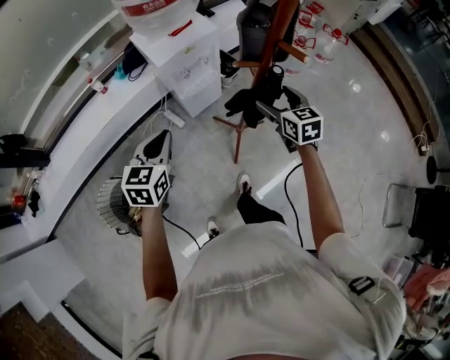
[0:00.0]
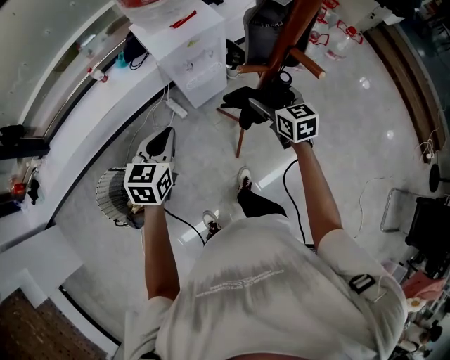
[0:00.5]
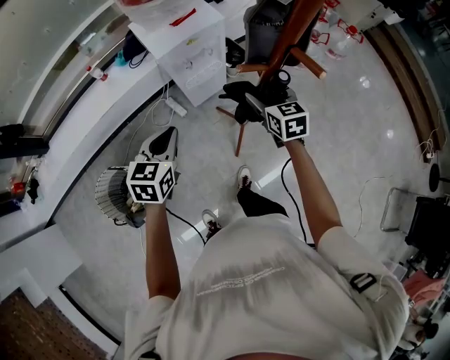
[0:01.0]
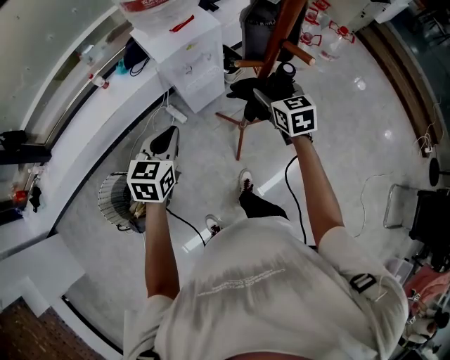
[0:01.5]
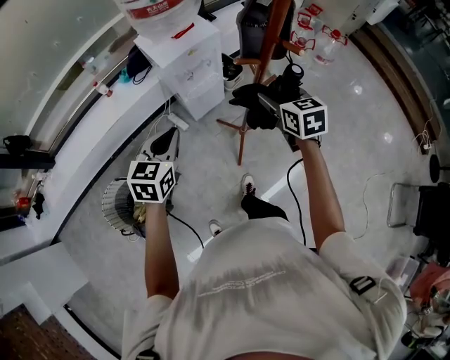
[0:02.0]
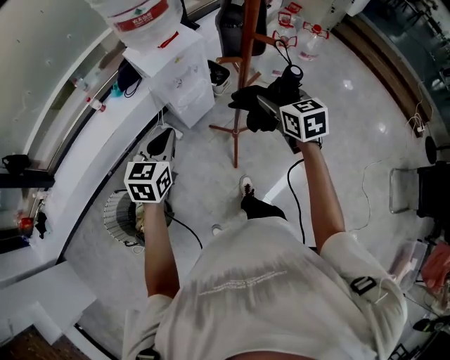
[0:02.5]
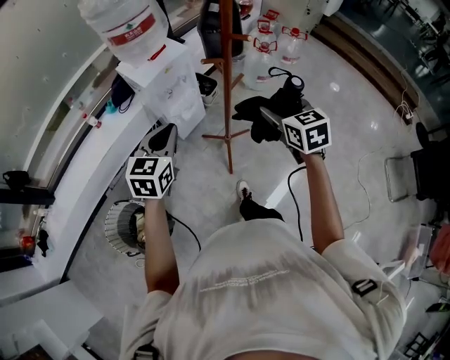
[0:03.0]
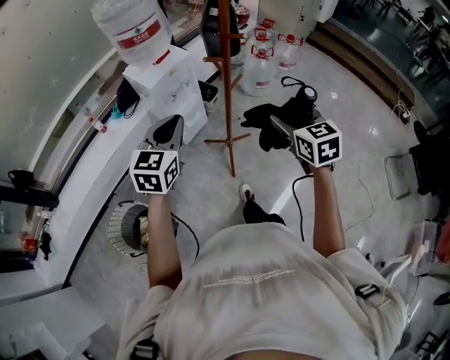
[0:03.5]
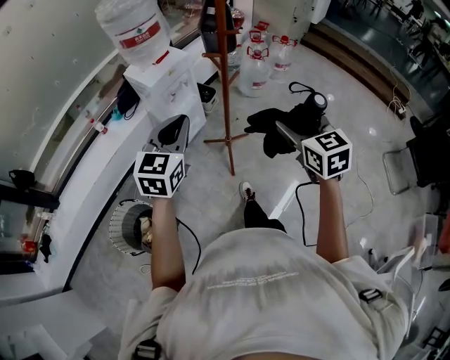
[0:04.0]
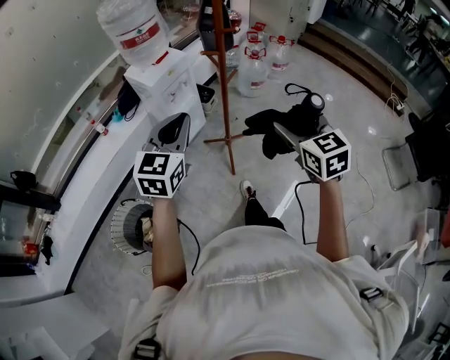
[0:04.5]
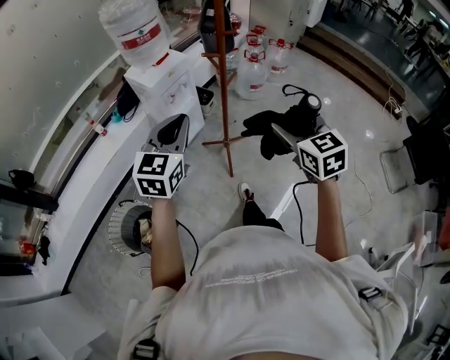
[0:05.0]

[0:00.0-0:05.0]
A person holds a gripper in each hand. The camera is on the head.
0:00.0 to 0:02.5: The right gripper moves upward and backward, roughly 10 cm.
0:02.5 to 0:05.0: The right gripper shifts some 30 cm backward and upward. Meanwhile the left gripper heads backward, upward and to the right, covering some 20 cm, and swivels approximately 20 degrees.

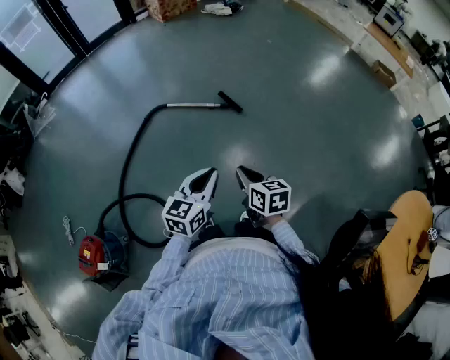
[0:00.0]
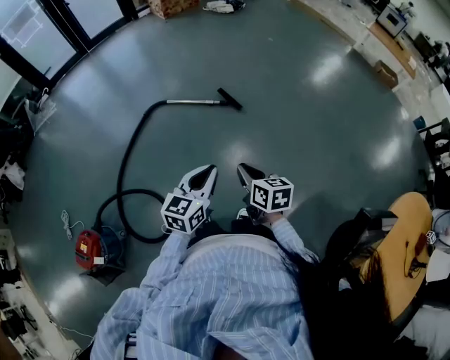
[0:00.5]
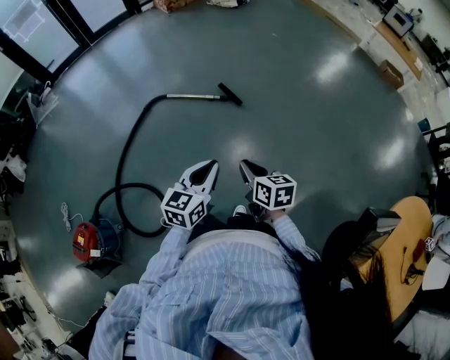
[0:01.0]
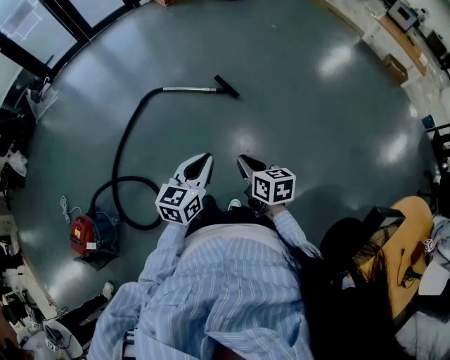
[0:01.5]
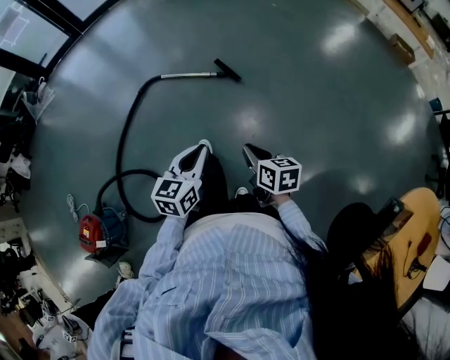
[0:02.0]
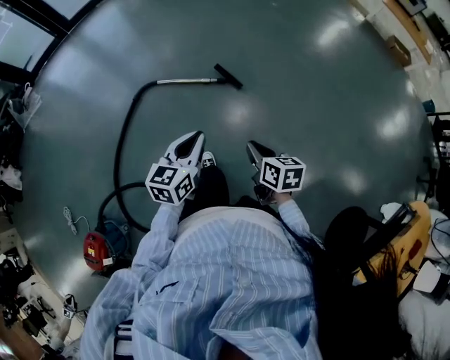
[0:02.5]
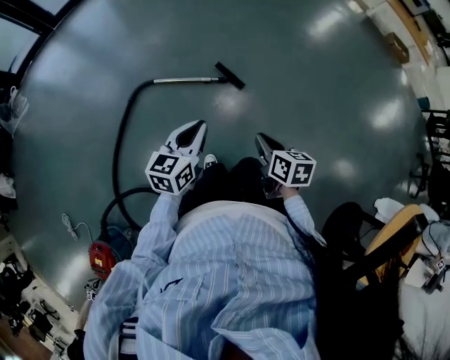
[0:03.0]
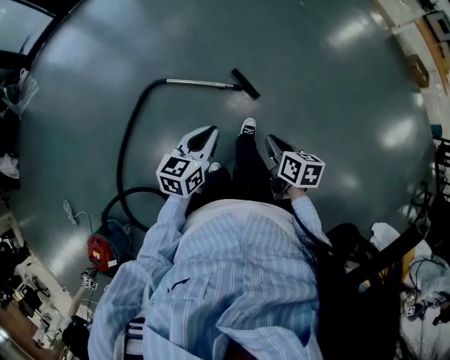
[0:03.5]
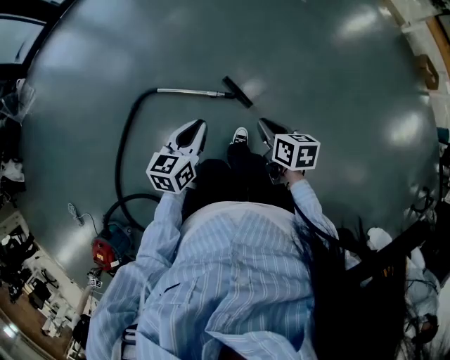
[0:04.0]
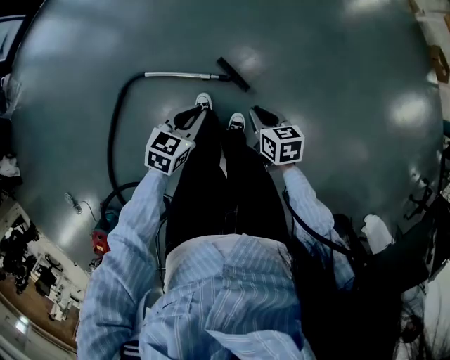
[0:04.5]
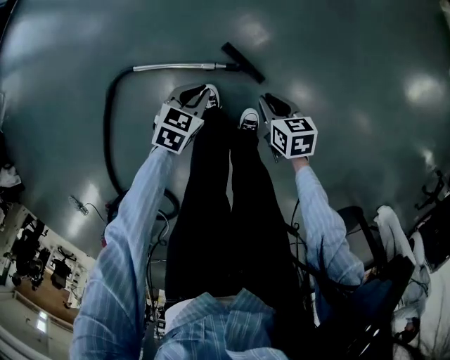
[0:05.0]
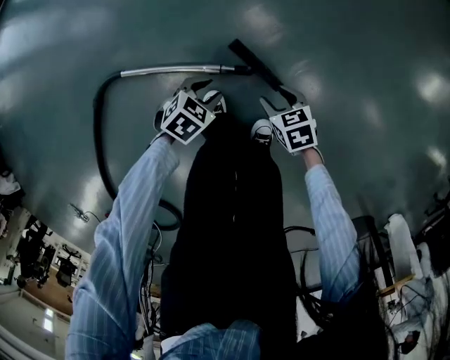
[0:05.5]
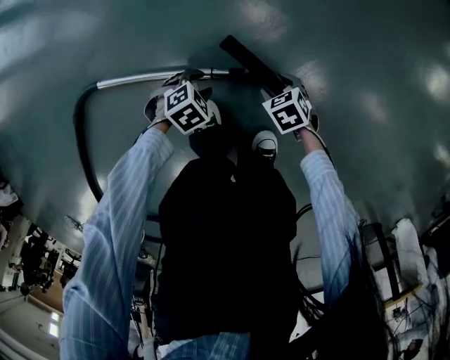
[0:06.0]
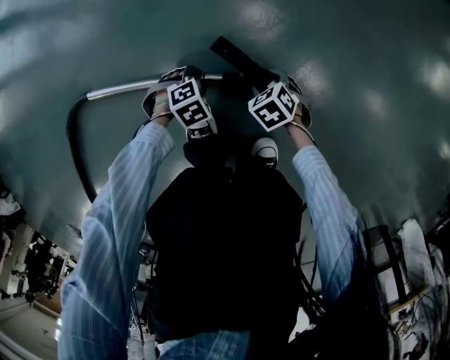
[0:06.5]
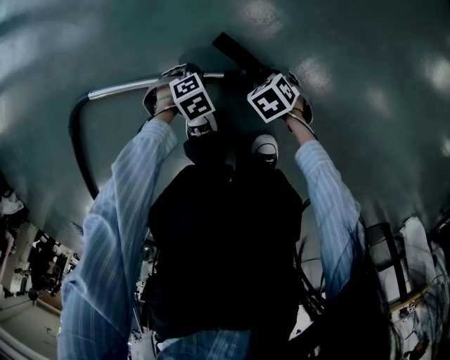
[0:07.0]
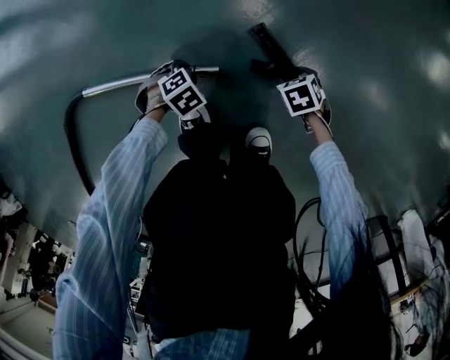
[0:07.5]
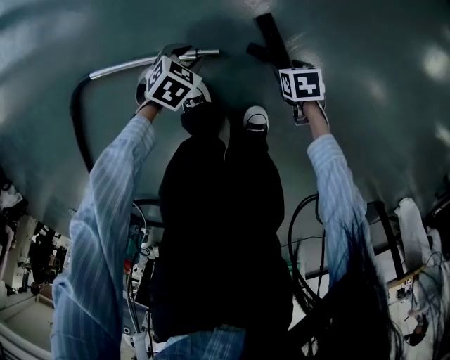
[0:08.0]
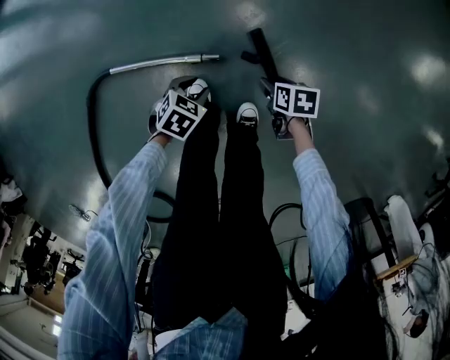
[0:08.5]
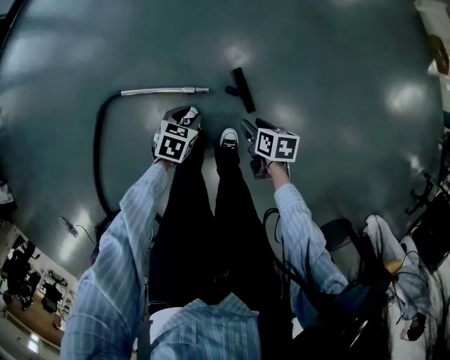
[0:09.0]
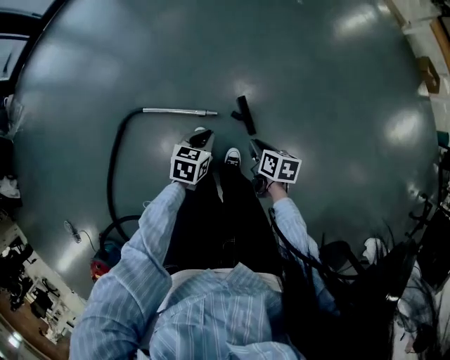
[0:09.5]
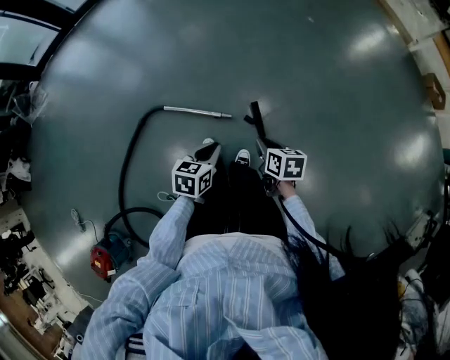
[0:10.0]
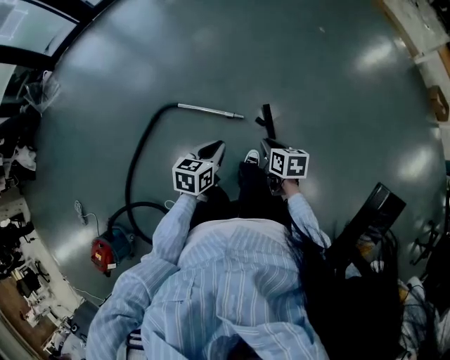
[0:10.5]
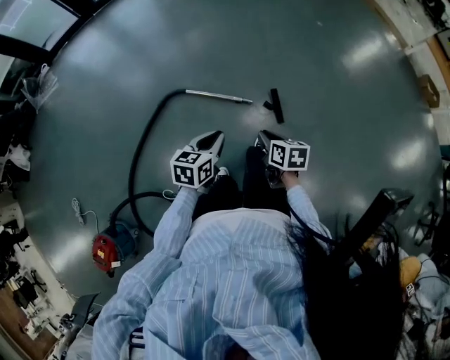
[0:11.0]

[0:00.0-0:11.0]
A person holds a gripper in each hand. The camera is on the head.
0:00.0 to 0:02.0: The left gripper goes roughly 10 cm to the right and forward; the right gripper shifts some 15 cm to the right and downward.
0:02.0 to 0:03.5: The two grippers go approximately 40 cm forward.
0:03.5 to 0:05.5: The two grippers go approximately 60 cm downward. The left gripper tips its fingers downward by approximately 40 degrees, and opens its fingers; the right gripper swivels some 30 degrees, and opens its fingers.
0:05.5 to 0:07.5: Both grippers move downward, some 25 cm. The right gripper rotates about 20 degrees; the left gripper turns by some 30 degrees.
0:07.5 to 0:09.0: Both grippers move upward, roughly 40 cm. The right gripper turns by approximately 40 degrees, while the left gripper changes its angle by roughly 50 degrees.
0:09.0 to 0:11.0: The right gripper travels upward, backward and to the left by about 40 cm, changes its angle by some 20 degrees, and closes, while the left gripper goes some 50 cm upward and backward, swivels some 40 degrees, and closes up.

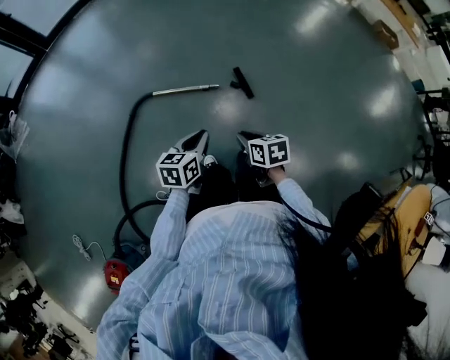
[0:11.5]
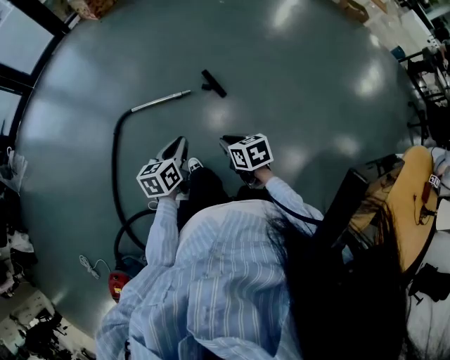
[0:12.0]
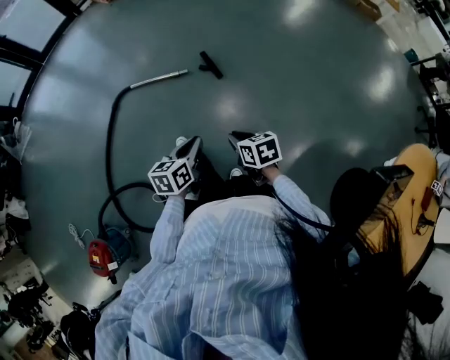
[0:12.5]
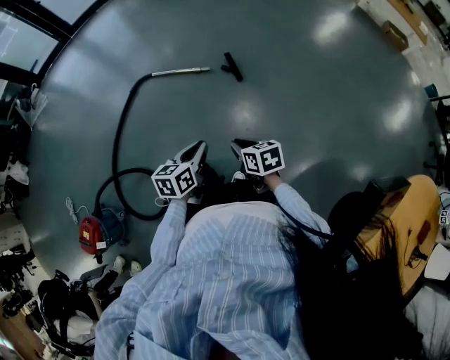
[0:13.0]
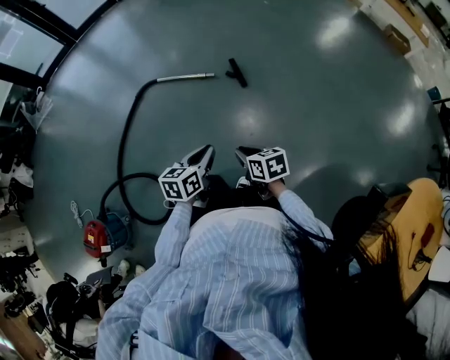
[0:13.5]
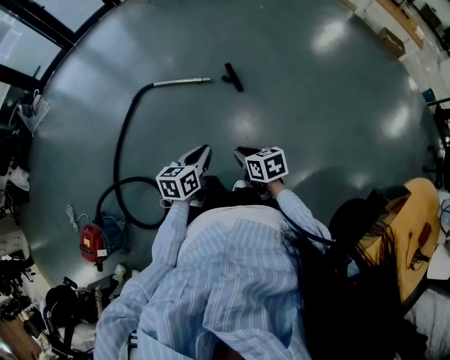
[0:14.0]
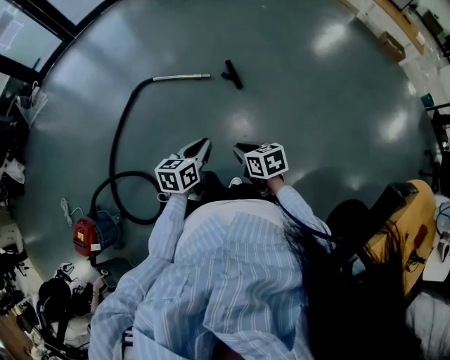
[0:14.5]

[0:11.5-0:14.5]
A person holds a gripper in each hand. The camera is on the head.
0:11.5 to 0:13.0: The two grippers go approximately 35 cm backward and to the right.
0:13.0 to 0:14.5: The grippers make only small movements.

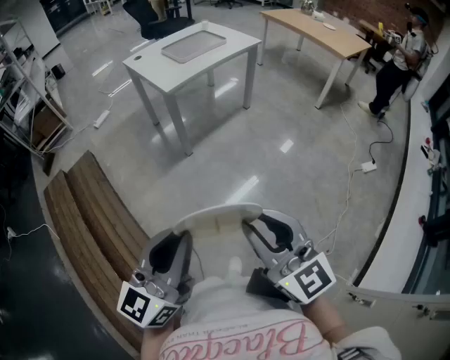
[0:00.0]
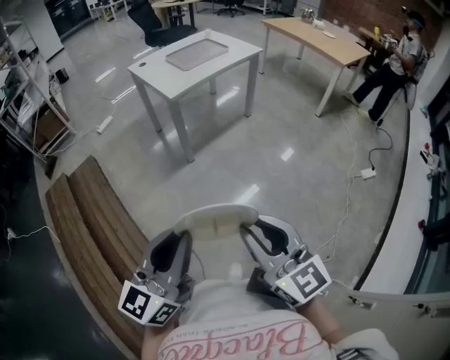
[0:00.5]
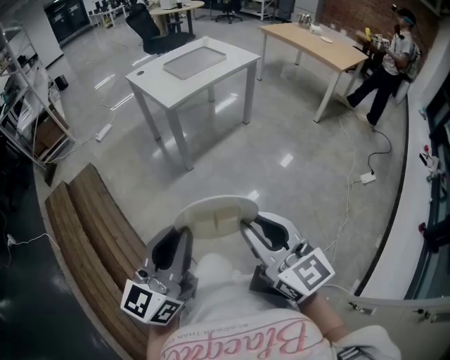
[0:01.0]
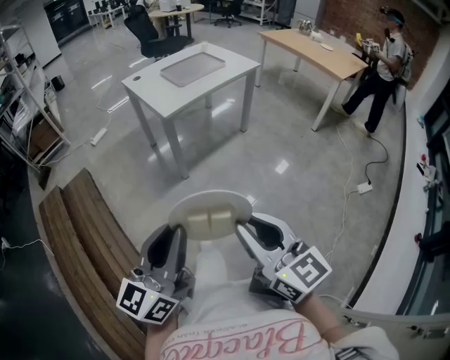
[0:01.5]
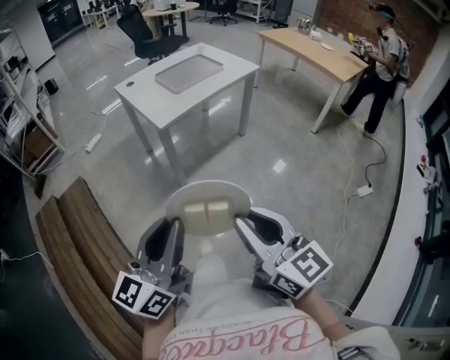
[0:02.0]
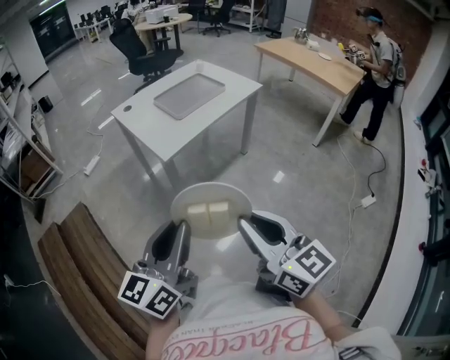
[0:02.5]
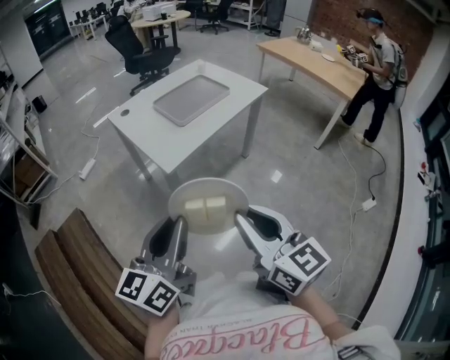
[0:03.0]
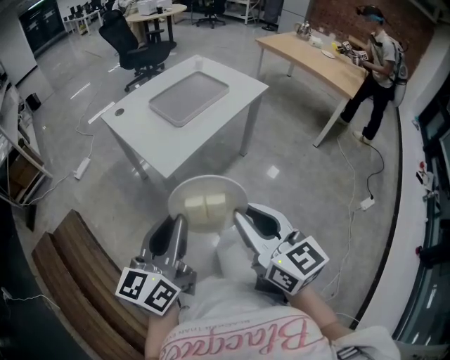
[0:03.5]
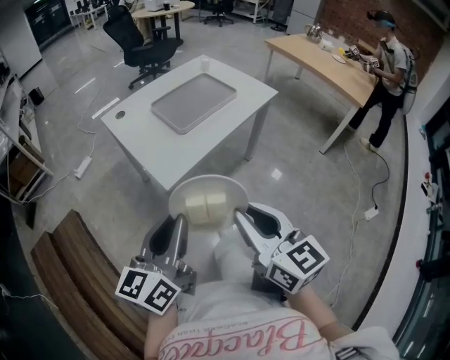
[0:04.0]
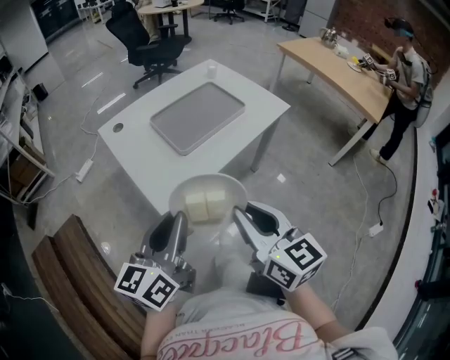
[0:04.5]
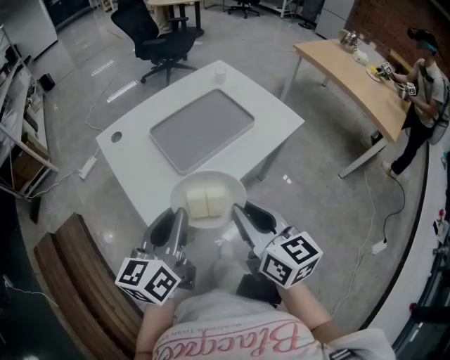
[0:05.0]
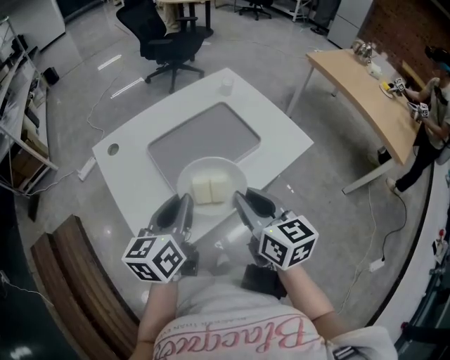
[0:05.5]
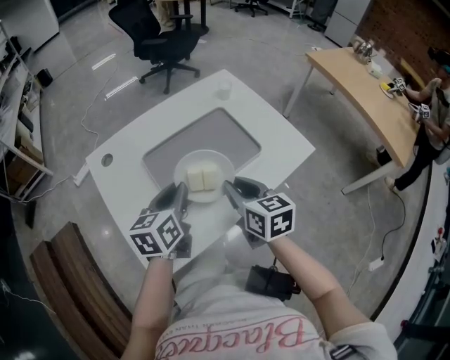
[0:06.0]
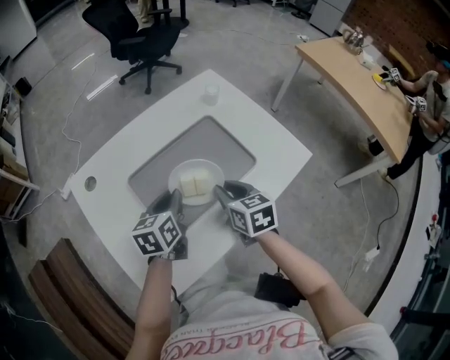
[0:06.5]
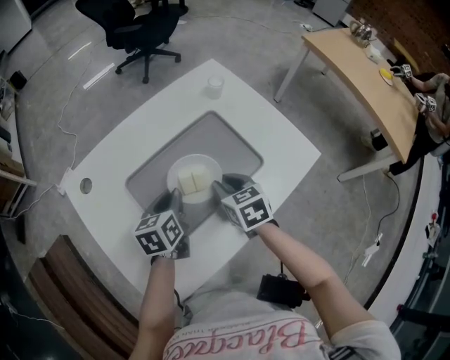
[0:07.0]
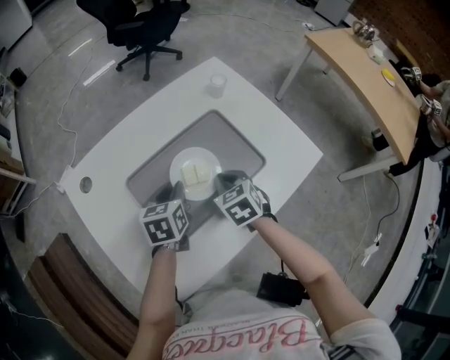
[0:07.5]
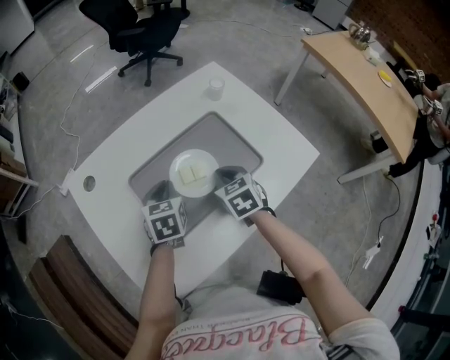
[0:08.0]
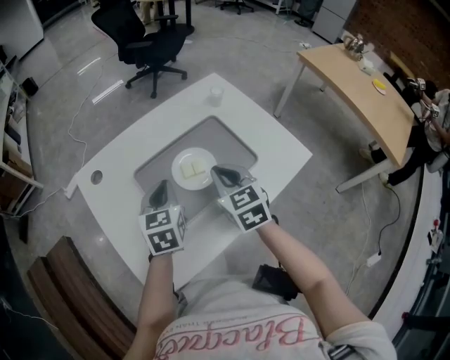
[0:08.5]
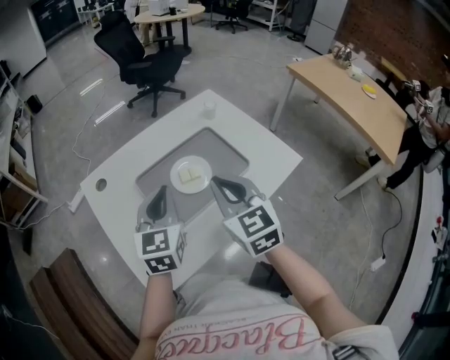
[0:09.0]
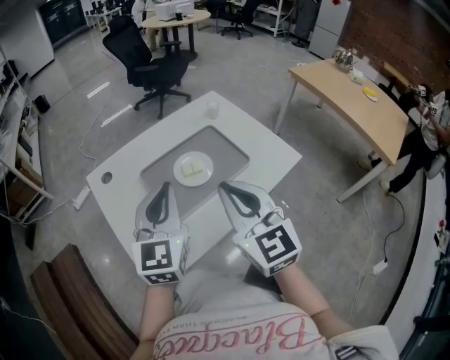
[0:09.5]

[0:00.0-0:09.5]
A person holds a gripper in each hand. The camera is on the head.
0:00.0 to 0:02.0: The grippers both shift forward by about 15 cm.
0:02.0 to 0:04.0: Both grippers move forward, roughly 30 cm.
0:04.0 to 0:05.5: The grippers both shift forward by approximately 30 cm.
0:05.5 to 0:07.5: The grippers both shift forward and downward by roughly 25 cm. The left gripper changes its angle by approximately 30 degrees; the right gripper tilts its fingers some 30 degrees downward.
0:07.5 to 0:09.5: Both grippers move upward and backward, roughly 30 cm. The left gripper points its fingers some 40 degrees further upward, and closes up. The right gripper angles its fingers upward, by about 50 degrees.
